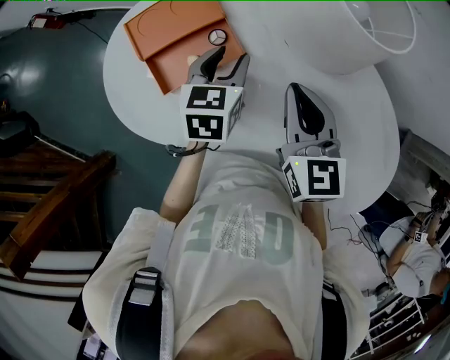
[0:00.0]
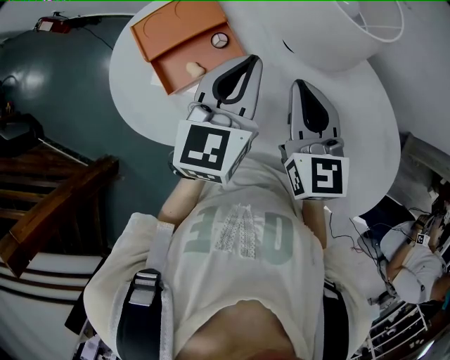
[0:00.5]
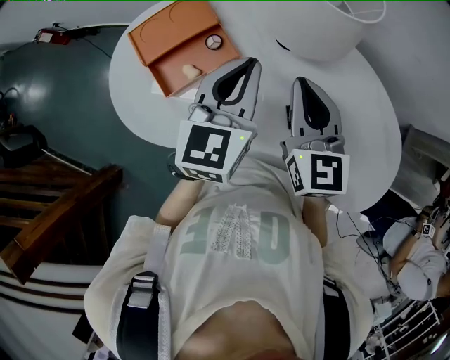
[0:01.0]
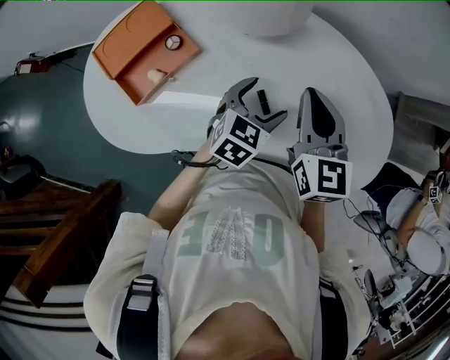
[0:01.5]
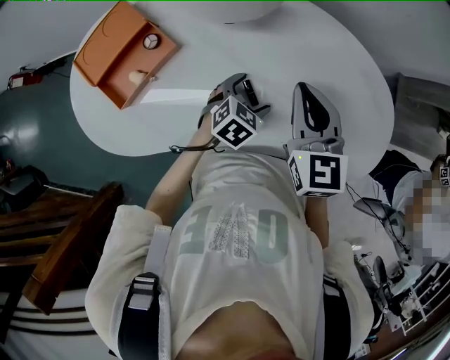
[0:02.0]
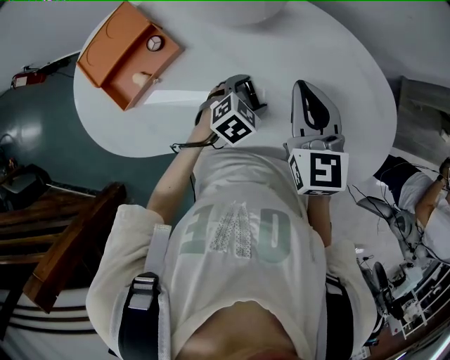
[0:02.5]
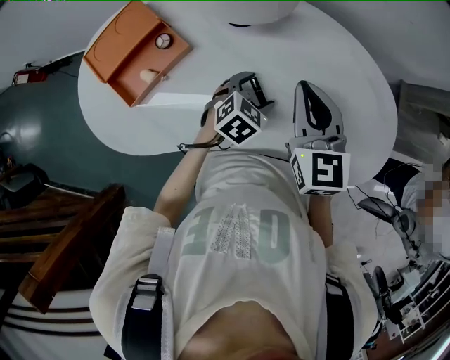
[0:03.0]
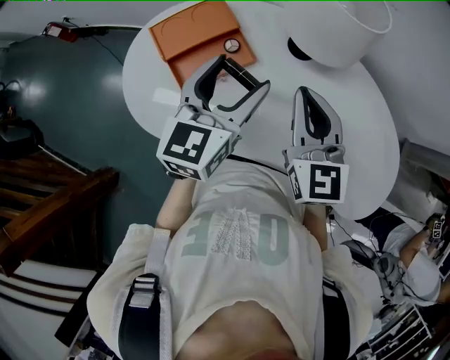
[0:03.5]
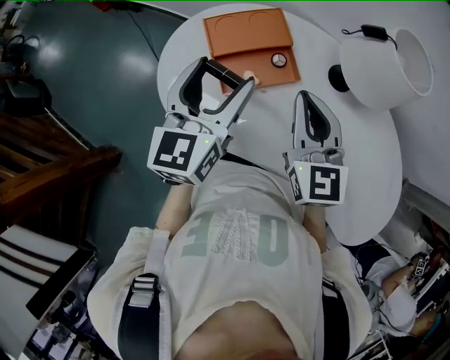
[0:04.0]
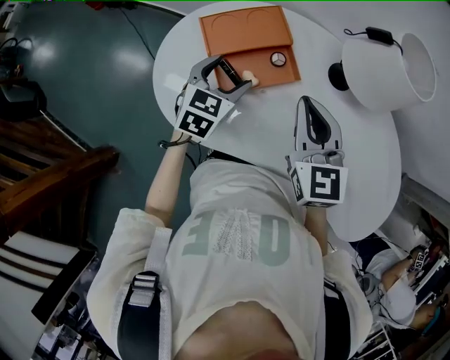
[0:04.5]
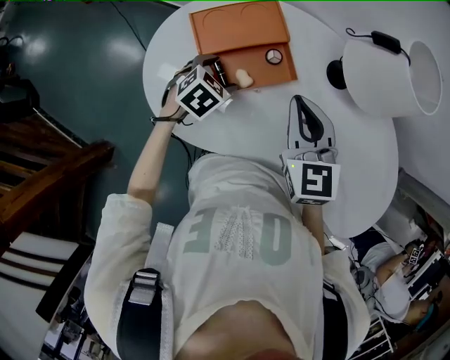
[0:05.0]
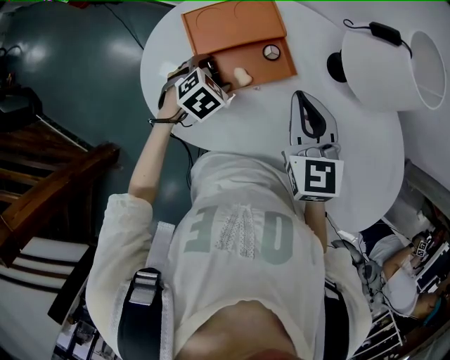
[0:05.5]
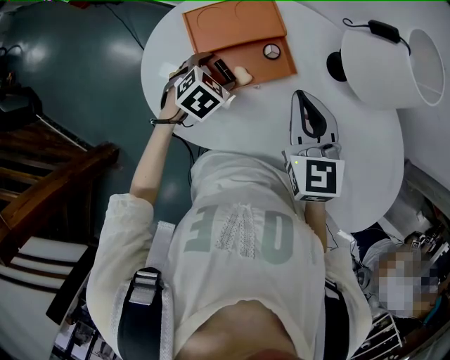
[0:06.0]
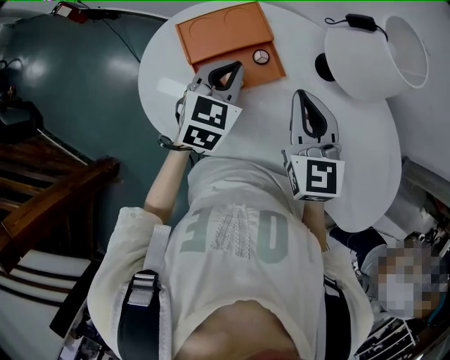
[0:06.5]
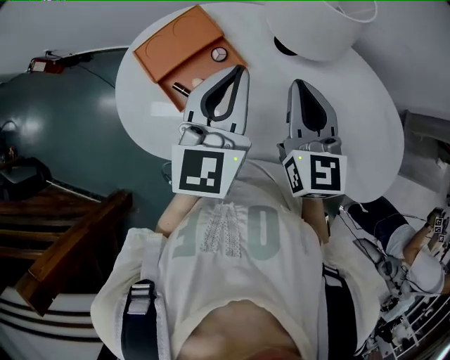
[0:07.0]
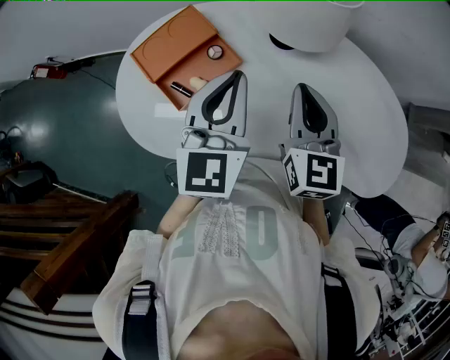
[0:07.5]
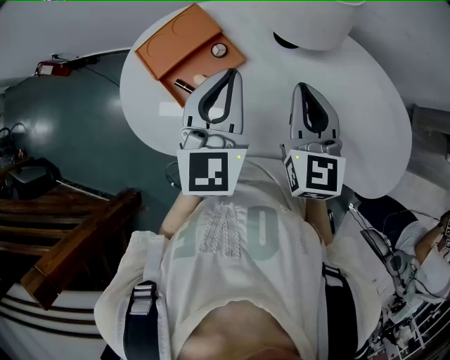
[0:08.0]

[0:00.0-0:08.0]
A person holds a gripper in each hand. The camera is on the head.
0:00.0 to 0:02.0: The right gripper ends up some 20 cm from where it was, while the left gripper ends up roughly 30 cm from where it was, rotates some 50 degrees, and opens.
0:02.0 to 0:04.0: The left gripper ends up about 50 cm from where it was, and angles its fingers upward, by approximately 40 degrees. The right gripper moves roughly 30 cm, and swivels approximately 30 degrees.
0:04.0 to 0:06.0: The left gripper heads downward, covering roughly 25 cm, and points its fingers some 50 degrees further downward, while the right gripper is displaced downward by approximately 5 cm.
0:06.0 to 0:08.0: The right gripper goes roughly 15 cm to the right, and changes its angle by about 30 degrees. Meanwhile the left gripper heads upward and to the right, covering approximately 30 cm, tips its fingers upward by approximately 50 degrees, and closes its fingers.

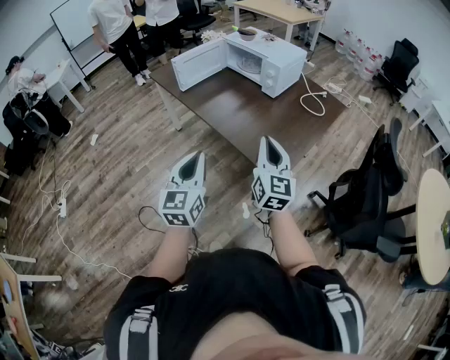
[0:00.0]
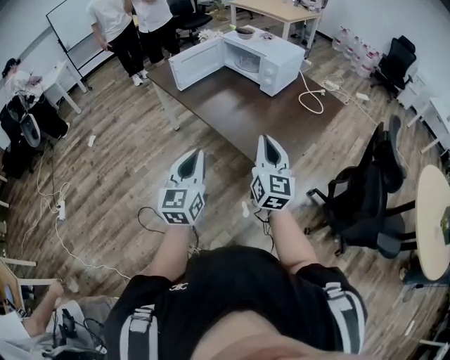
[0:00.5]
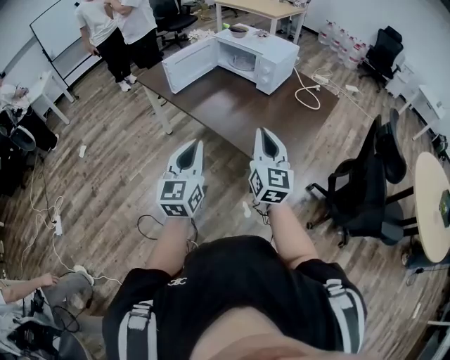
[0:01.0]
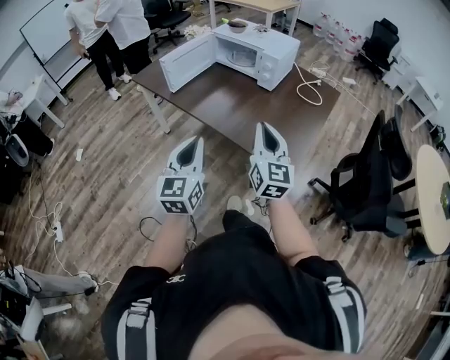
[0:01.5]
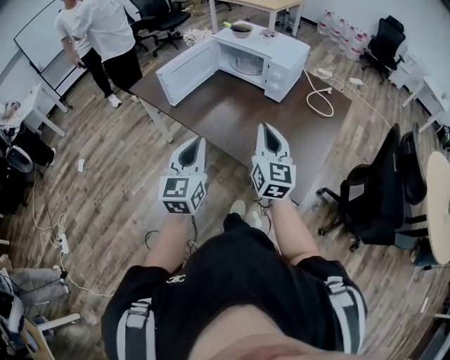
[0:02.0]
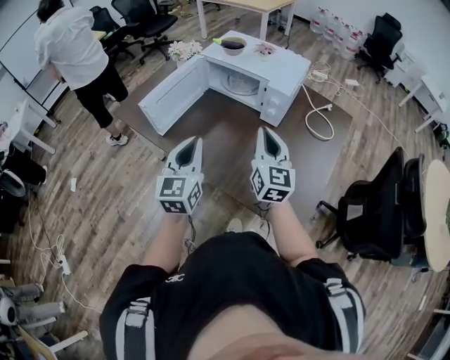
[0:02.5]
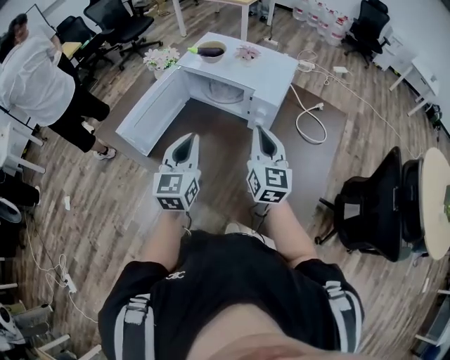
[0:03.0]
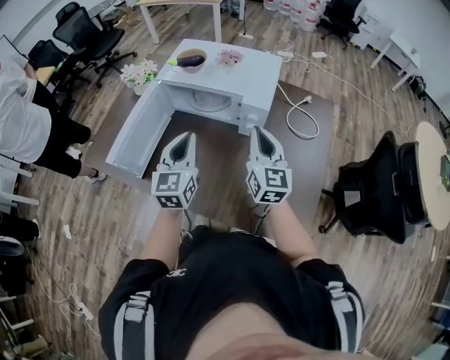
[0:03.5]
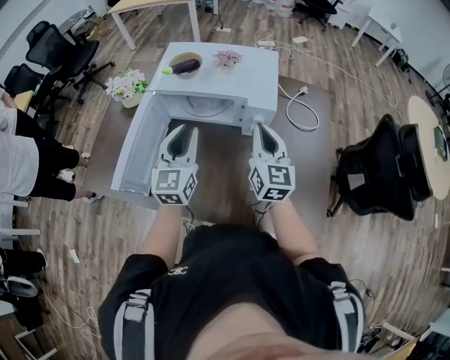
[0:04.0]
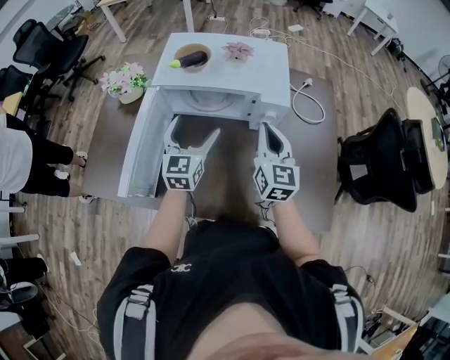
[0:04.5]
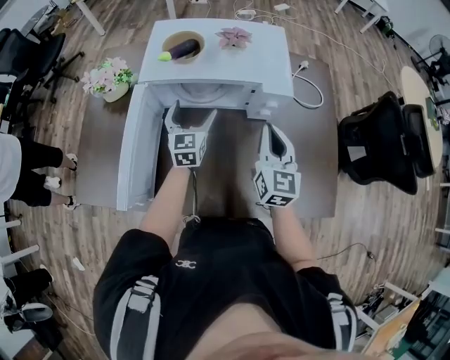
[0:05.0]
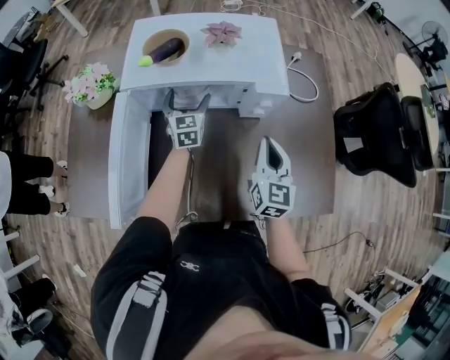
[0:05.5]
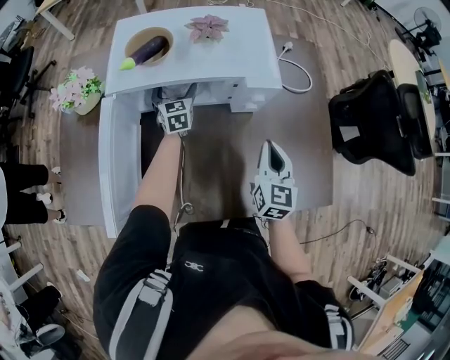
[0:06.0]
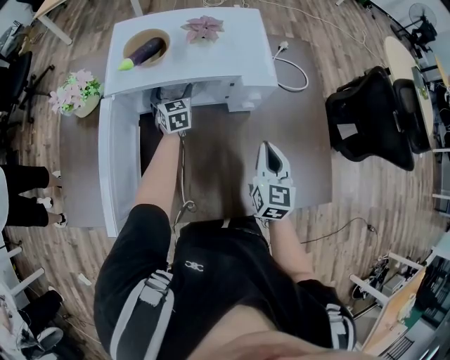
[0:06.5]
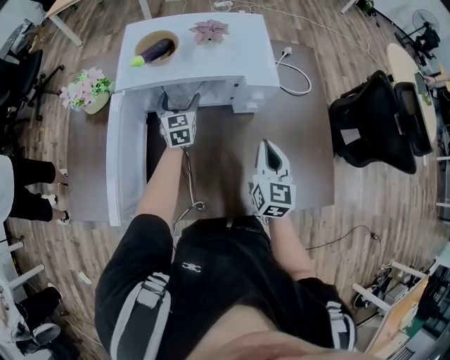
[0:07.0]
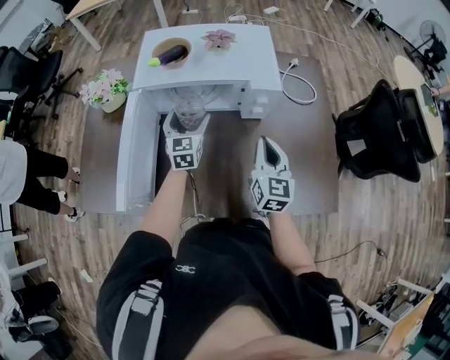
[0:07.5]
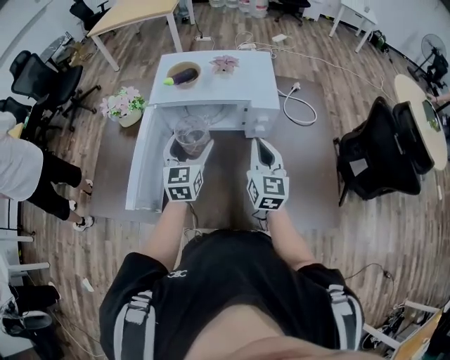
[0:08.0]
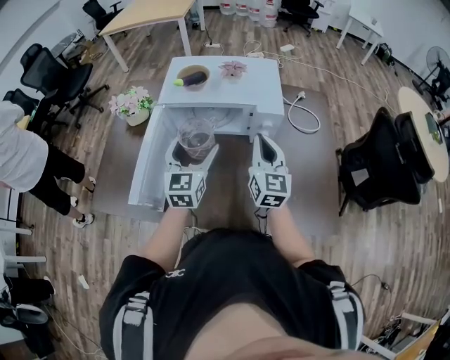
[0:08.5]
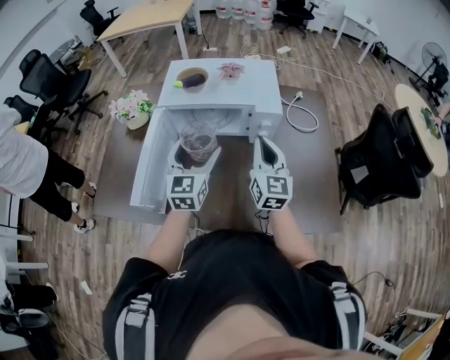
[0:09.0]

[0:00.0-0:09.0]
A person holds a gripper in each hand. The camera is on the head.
0:00.0 to 0:02.0: The two grippers go some 25 cm forward and to the left.
0:02.0 to 0:04.5: The left gripper changes place by approximately 50 cm, turns by about 30 degrees, and opens its fingers; the right gripper ends up about 40 cm from where it was, and rotates some 30 degrees.
0:04.5 to 0:07.0: The left gripper goes some 20 cm forward and downward. The right gripper shifts roughly 10 cm downward.
0:07.0 to 0:09.0: The left gripper moves backward and upward, about 30 cm. Meanwhile the right gripper moves upward, about 10 cm, and swivels roughly 20 degrees.

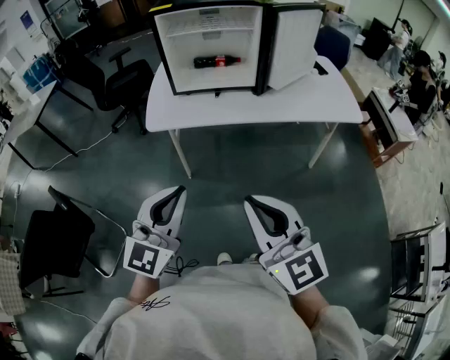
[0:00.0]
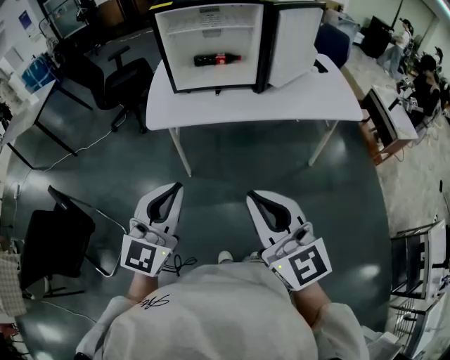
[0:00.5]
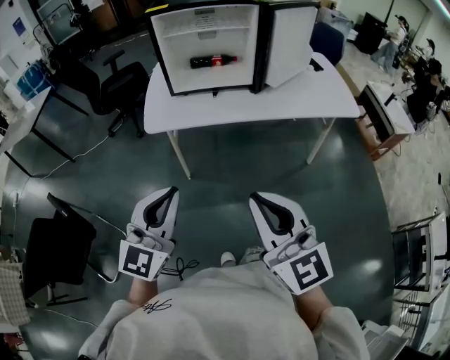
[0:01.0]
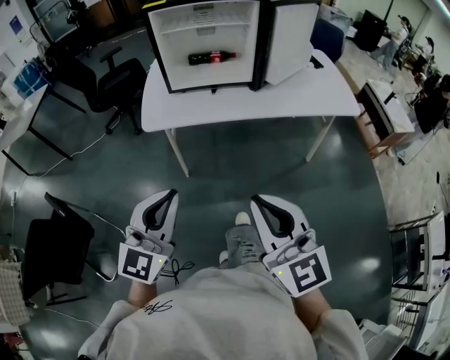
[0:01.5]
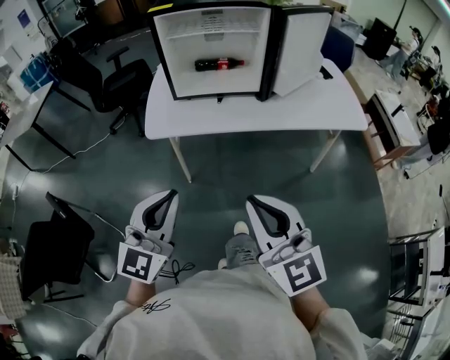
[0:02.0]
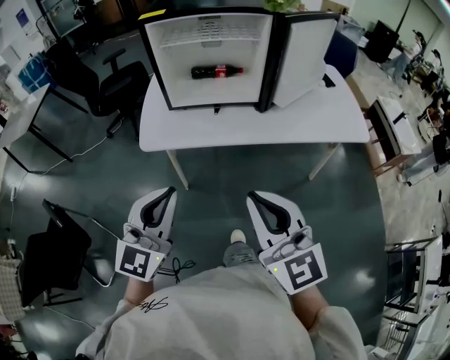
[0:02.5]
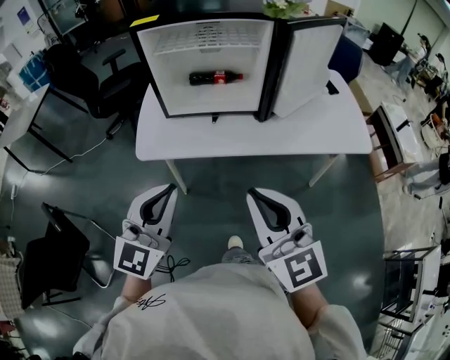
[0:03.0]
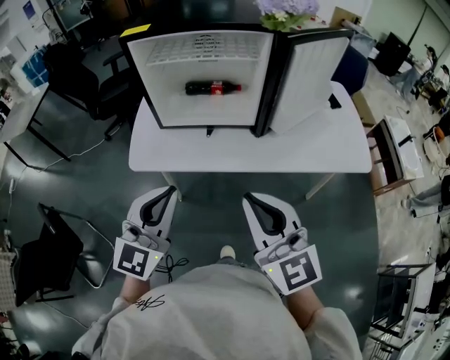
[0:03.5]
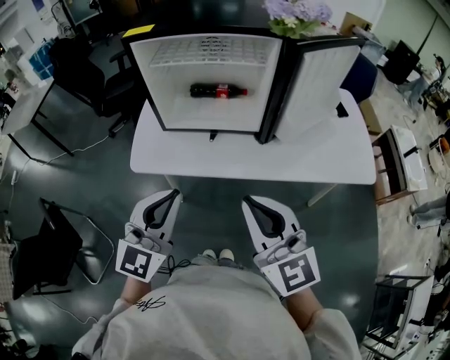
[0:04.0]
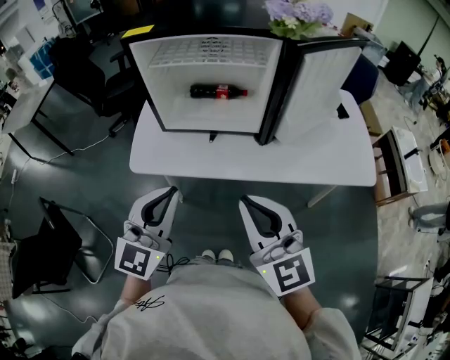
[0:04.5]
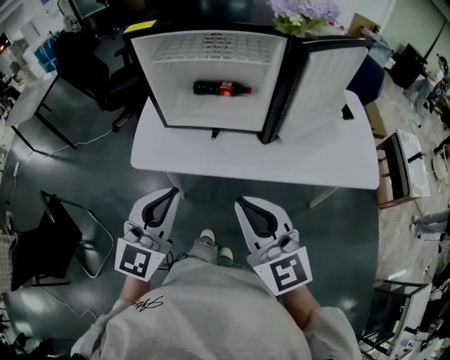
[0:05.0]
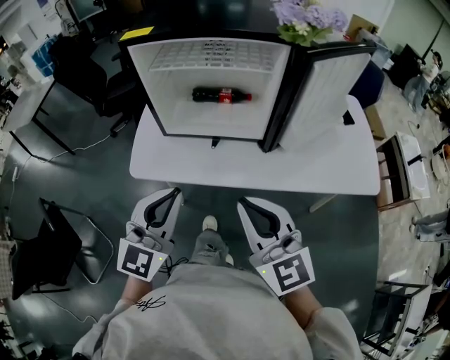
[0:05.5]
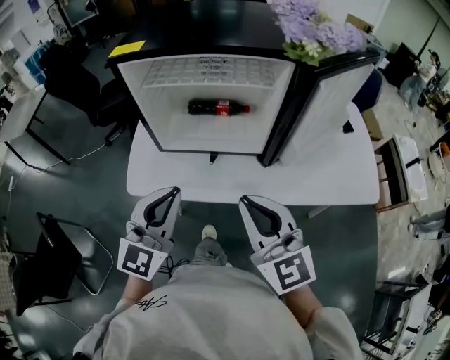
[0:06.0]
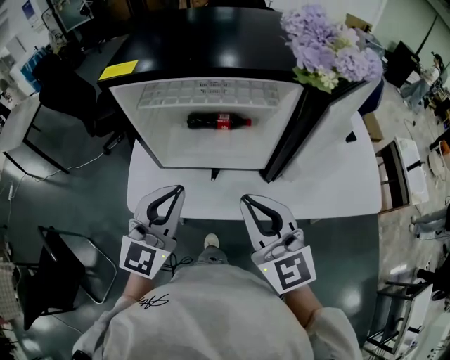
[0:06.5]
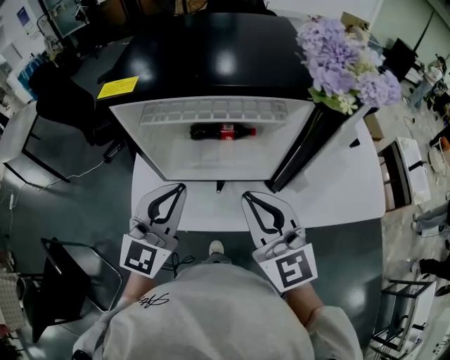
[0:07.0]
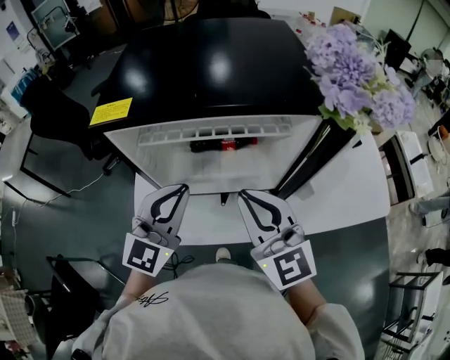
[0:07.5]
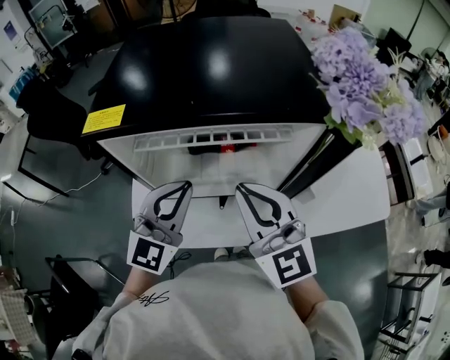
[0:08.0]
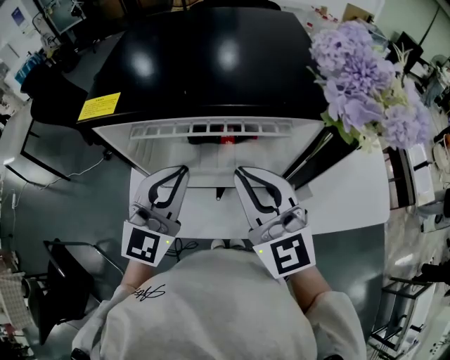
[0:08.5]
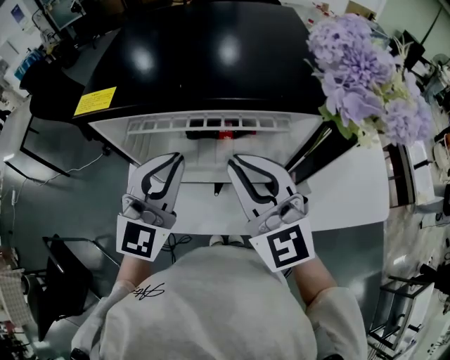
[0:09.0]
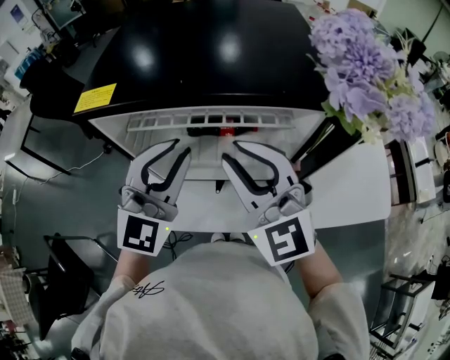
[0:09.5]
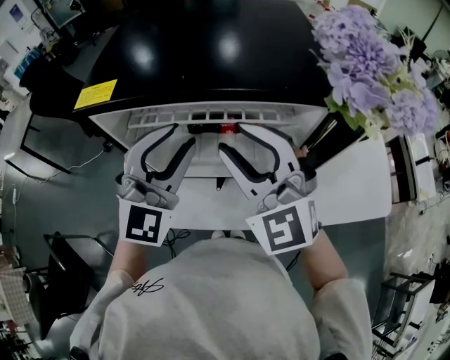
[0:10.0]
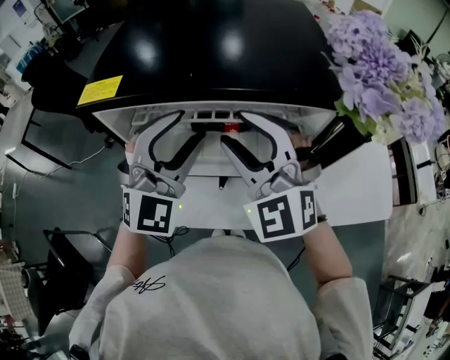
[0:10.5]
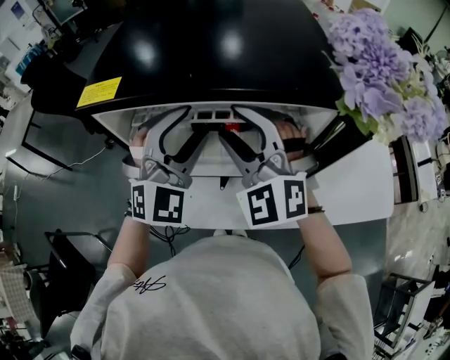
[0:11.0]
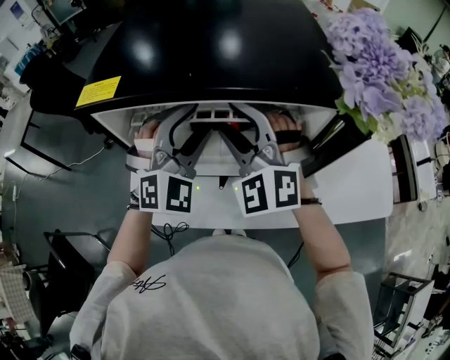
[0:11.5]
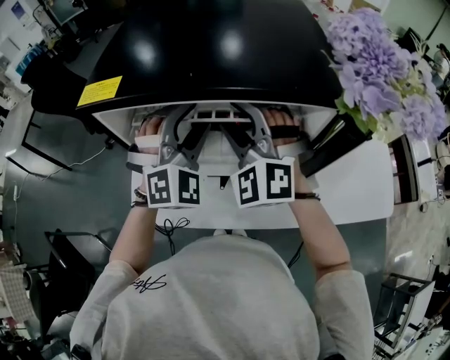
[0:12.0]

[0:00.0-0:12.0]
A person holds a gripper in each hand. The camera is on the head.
0:00.0 to 0:02.0: The right gripper is displaced forward by approximately 5 cm.
0:02.0 to 0:04.0: The left gripper is displaced forward and to the right by about 20 cm; the right gripper moves forward, roughly 20 cm.
0:04.0 to 0:06.0: Both grippers move forward, some 10 cm.
0:06.0 to 0:08.0: The two grippers go roughly 15 cm forward.
0:08.0 to 0:10.0: The right gripper moves approximately 5 cm, turns by some 30 degrees, and opens up. Meanwhile the left gripper moves upward, about 5 cm, and opens up.
0:10.0 to 0:12.0: Both grippers move forward and downward, some 10 cm. The right gripper changes its angle by roughly 30 degrees. Meanwhile the left gripper rotates some 30 degrees.
